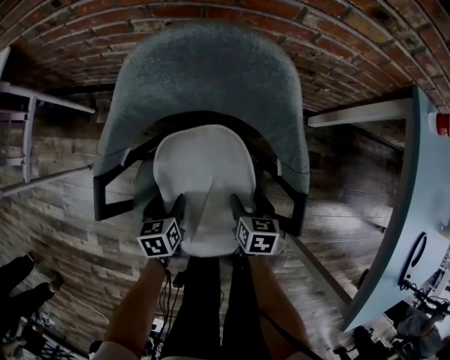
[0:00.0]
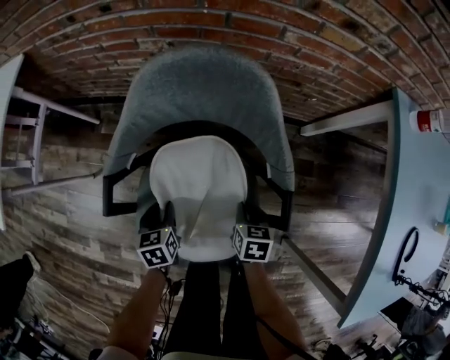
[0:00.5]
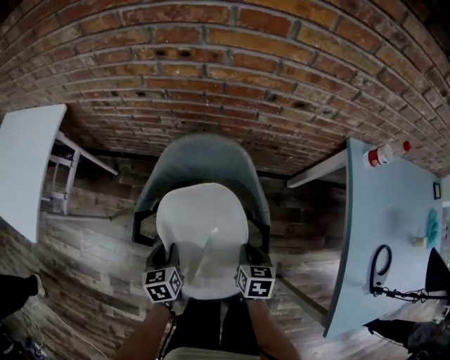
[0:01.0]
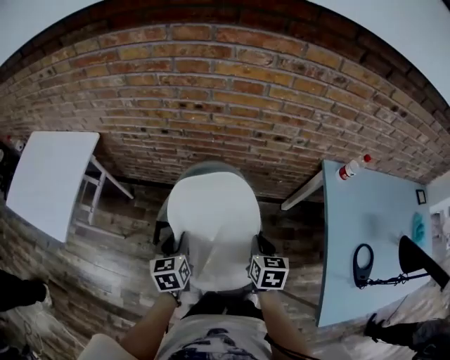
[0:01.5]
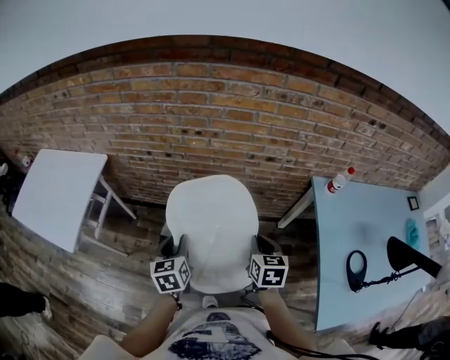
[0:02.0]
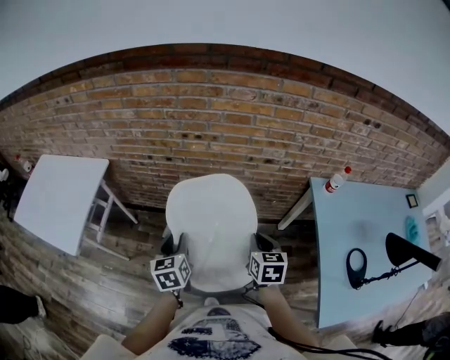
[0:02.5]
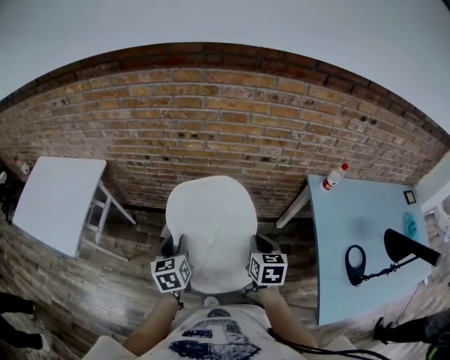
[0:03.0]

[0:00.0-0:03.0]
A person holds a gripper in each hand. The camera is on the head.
0:00.0 to 0:01.5: The two grippers go some 40 cm upward. The right gripper closes up. The left gripper rotates some 20 degrees, and closes its fingers.
0:01.5 to 0:03.0: Both grippers travel together upward, about 10 cm.

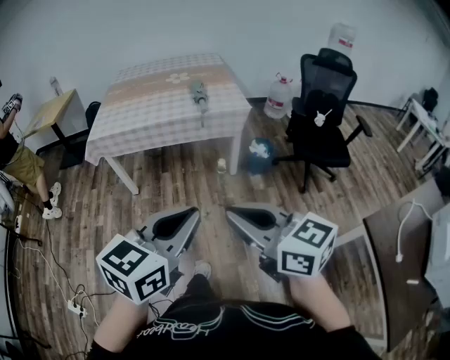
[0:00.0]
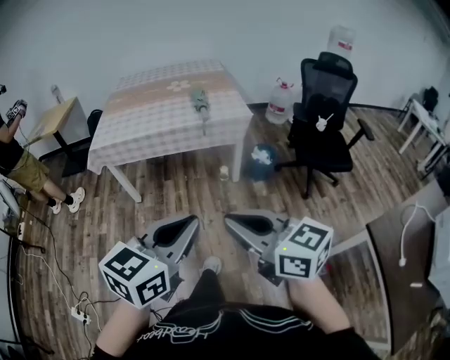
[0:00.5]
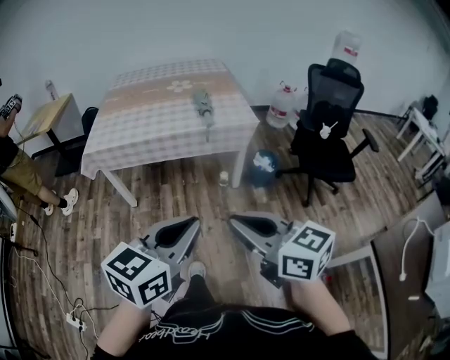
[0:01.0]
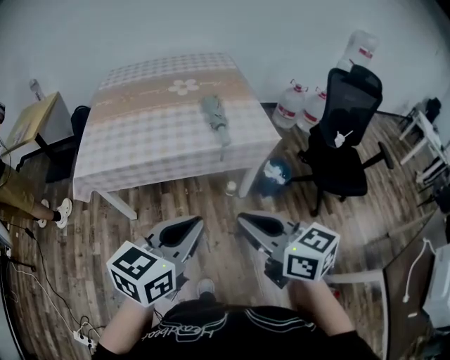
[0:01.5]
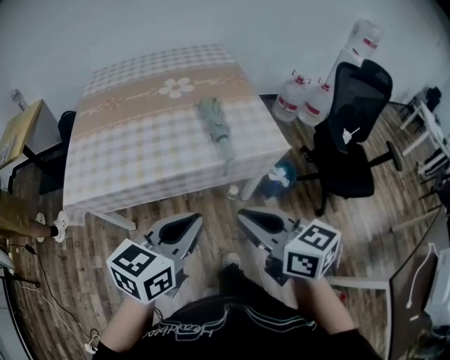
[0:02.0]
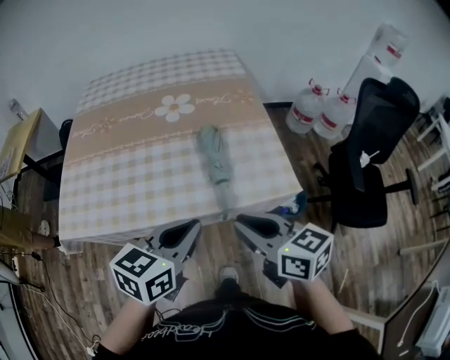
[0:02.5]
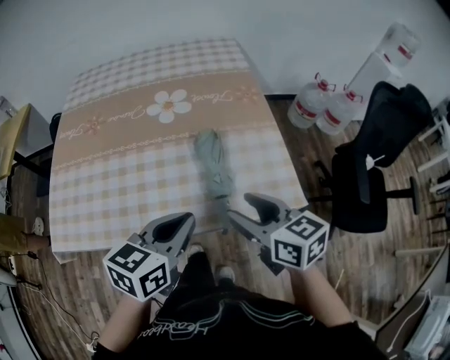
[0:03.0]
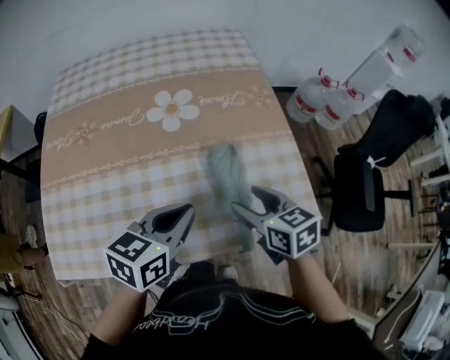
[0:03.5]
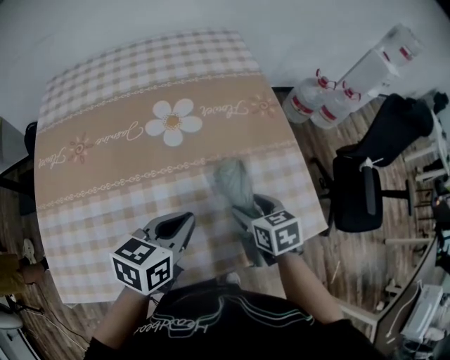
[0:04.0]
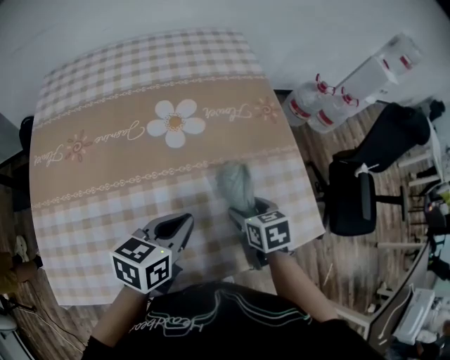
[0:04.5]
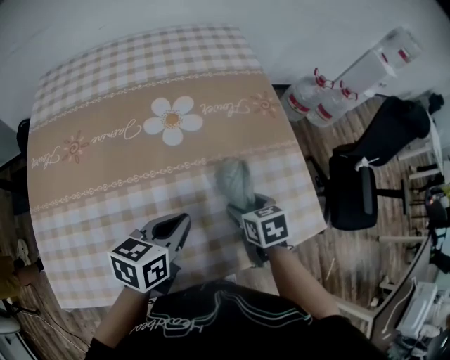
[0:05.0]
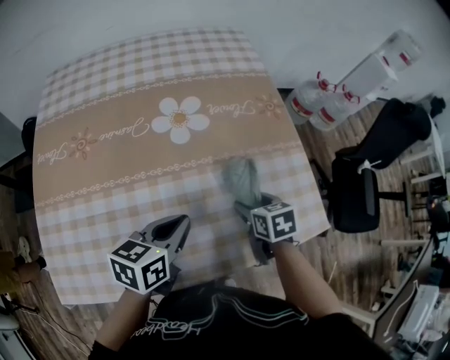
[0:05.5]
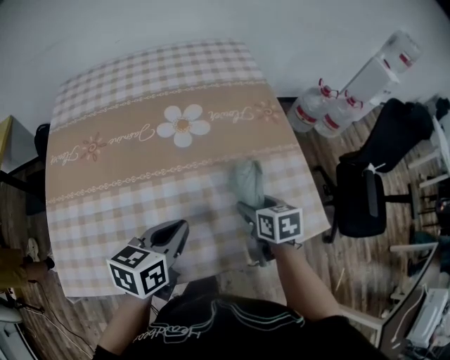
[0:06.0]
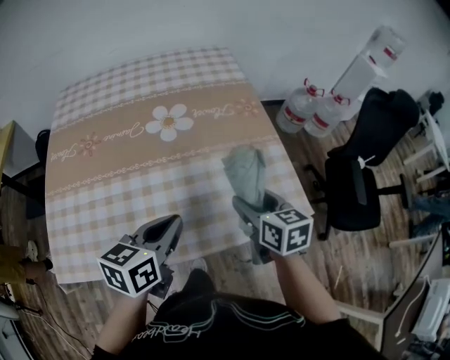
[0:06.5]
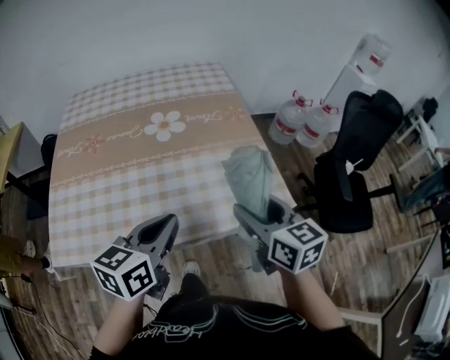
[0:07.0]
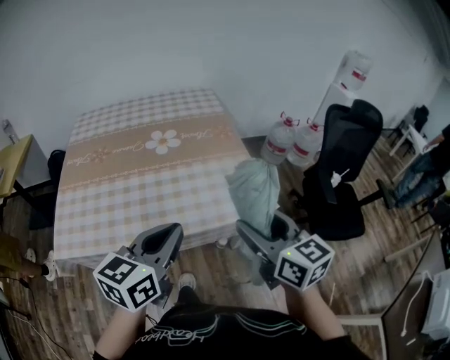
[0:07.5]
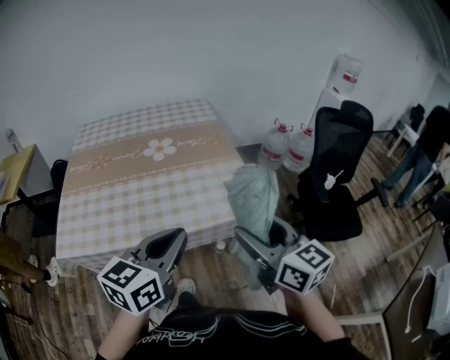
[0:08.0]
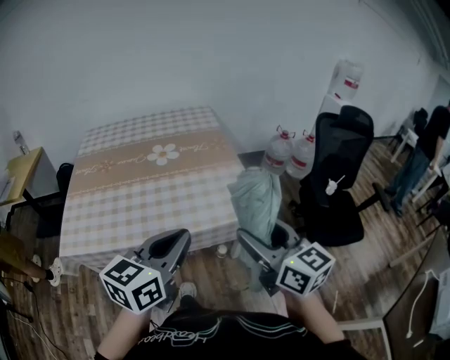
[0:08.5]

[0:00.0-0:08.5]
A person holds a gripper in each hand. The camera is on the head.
0:00.0 to 0:02.0: Both grippers are carried forward, approximately 50 cm.
0:02.0 to 0:04.0: The pair of grippers is taken forward, approximately 40 cm. The right gripper heads downward, covering about 25 cm, angles its fingers downward, by about 30 degrees, and opens its fingers.
0:04.0 to 0:06.5: The left gripper travels backward and upward by approximately 10 cm. The right gripper shifts approximately 10 cm upward.
0:06.5 to 0:08.5: The right gripper is displaced backward and upward by approximately 35 cm, and rotates some 30 degrees. Meanwhile the left gripper heads backward, upward and to the right, covering roughly 30 cm, and changes its angle by approximately 20 degrees.

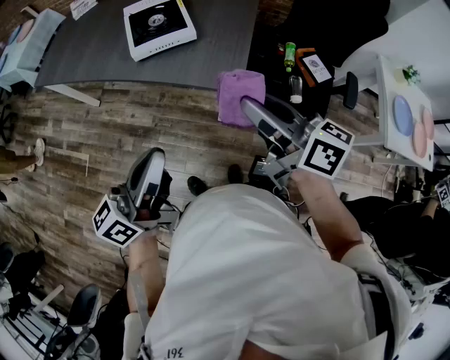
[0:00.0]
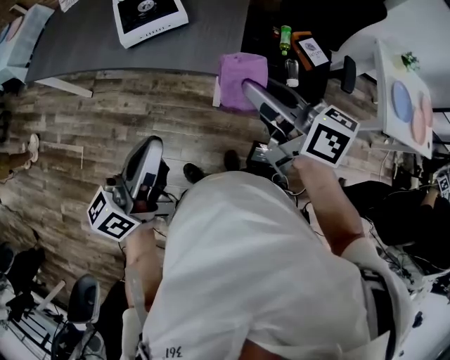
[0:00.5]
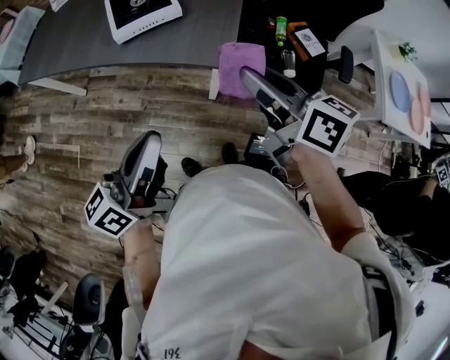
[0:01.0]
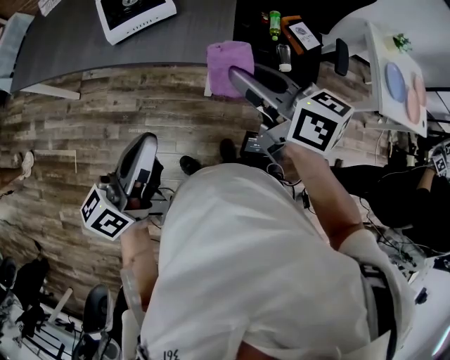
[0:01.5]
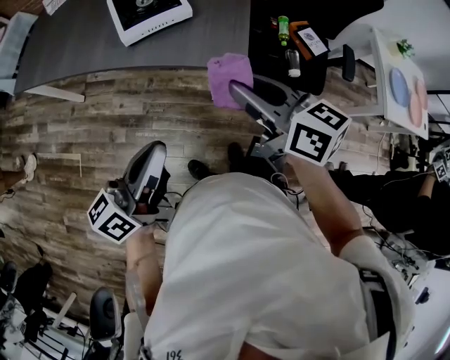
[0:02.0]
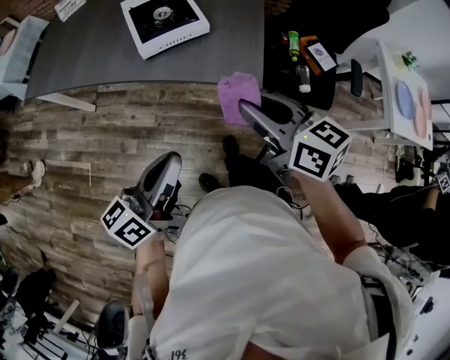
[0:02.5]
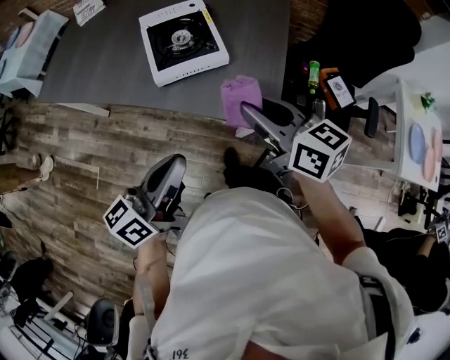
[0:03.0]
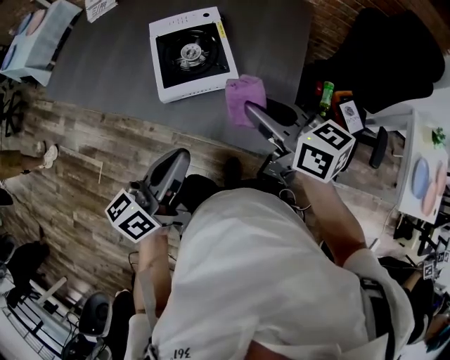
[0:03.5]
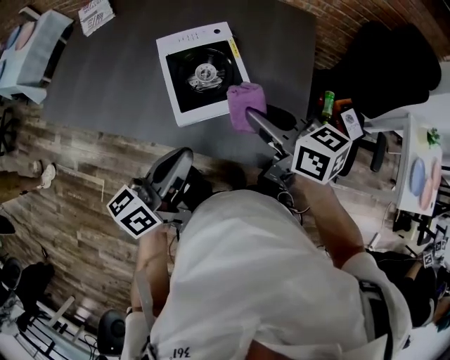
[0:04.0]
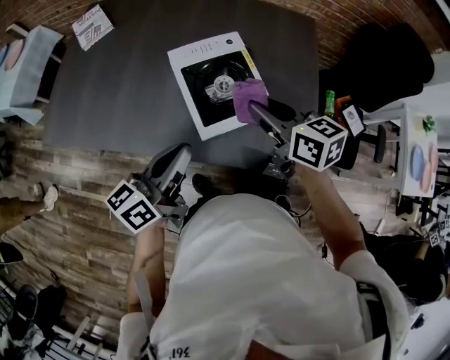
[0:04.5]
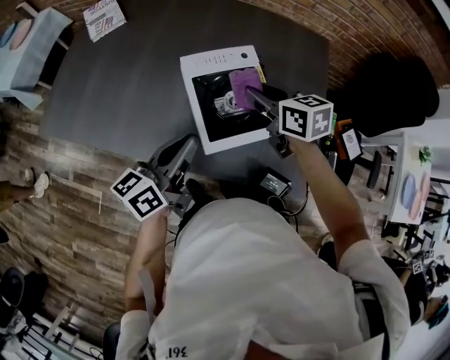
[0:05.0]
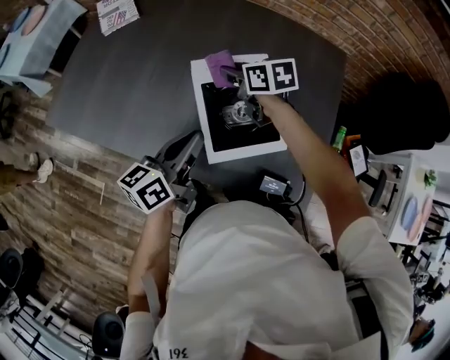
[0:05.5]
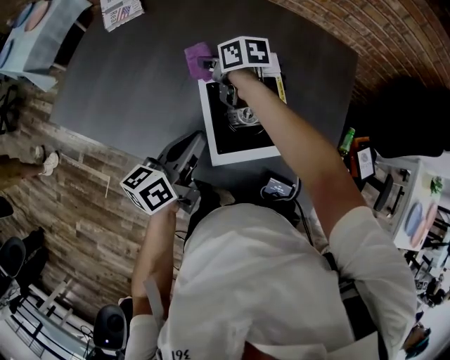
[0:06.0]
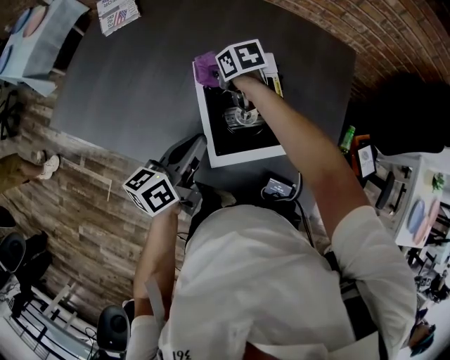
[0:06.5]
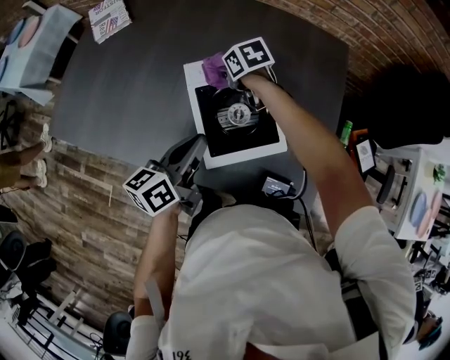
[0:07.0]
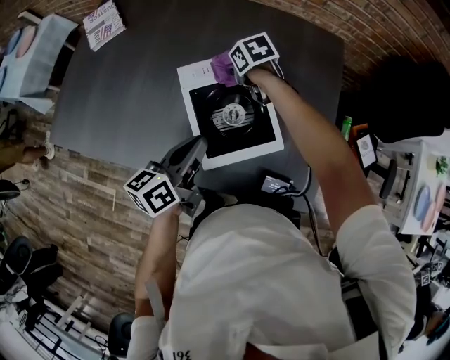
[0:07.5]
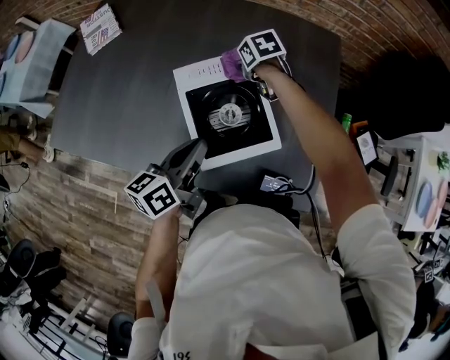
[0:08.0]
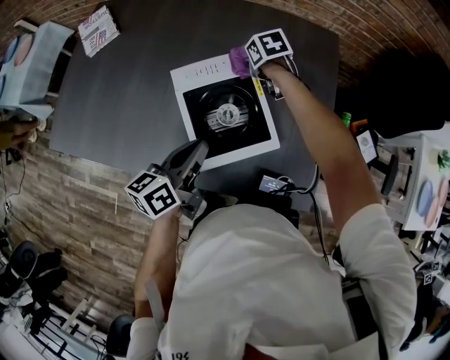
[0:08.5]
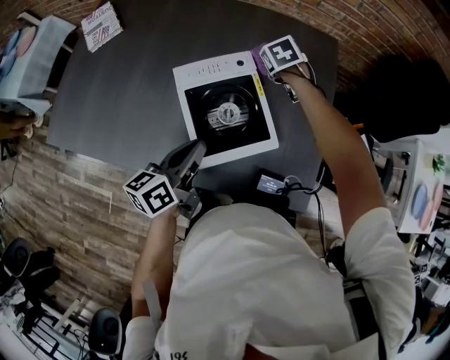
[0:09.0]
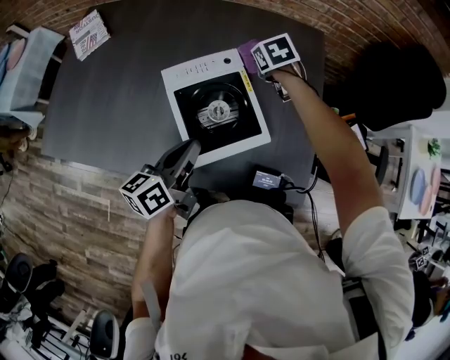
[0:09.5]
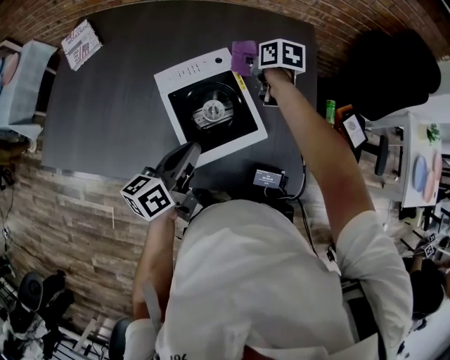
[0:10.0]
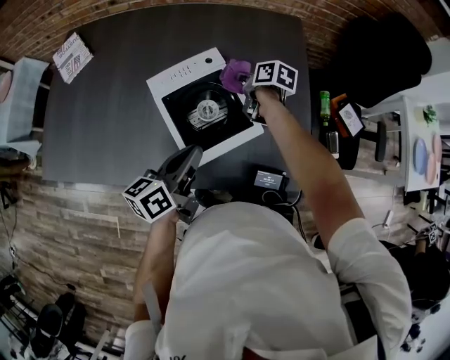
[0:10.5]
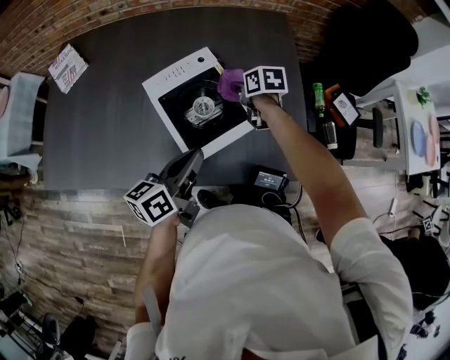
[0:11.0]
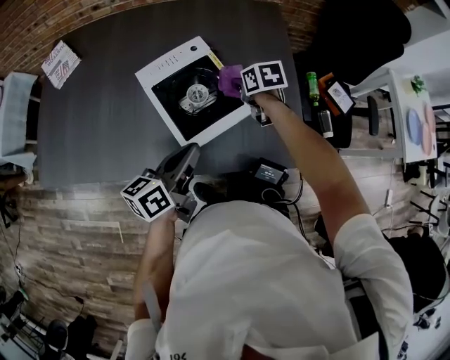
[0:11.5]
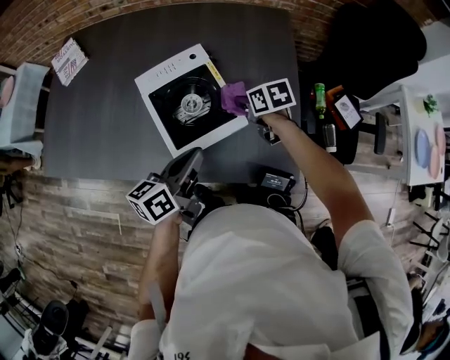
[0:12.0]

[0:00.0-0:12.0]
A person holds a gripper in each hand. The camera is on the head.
0:00.0 to 0:02.0: The left gripper shifts some 10 cm to the left and downward. The right gripper shifts roughly 5 cm to the left.
0:02.0 to 0:04.0: The grippers both shift forward by approximately 30 cm.
0:04.0 to 0:06.0: The right gripper is displaced forward, to the left and downward by some 40 cm, and changes its angle by approximately 30 degrees. Meanwhile the left gripper heads forward and downward, covering roughly 20 cm.
0:06.0 to 0:08.0: The right gripper shifts about 20 cm to the right, and rotates about 30 degrees; the left gripper heads to the right, covering approximately 5 cm.
0:08.0 to 0:10.0: The right gripper travels to the right and upward by some 10 cm, and changes its angle by some 30 degrees.
0:10.0 to 0:12.0: The right gripper goes about 15 cm backward and to the right. The left gripper heads to the right, covering roughly 5 cm.

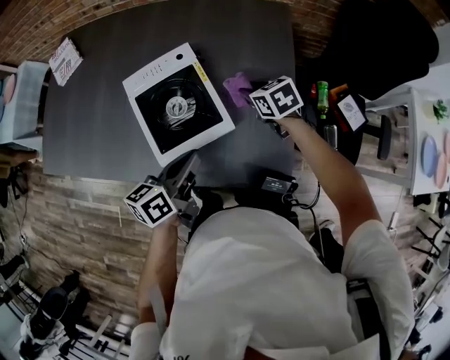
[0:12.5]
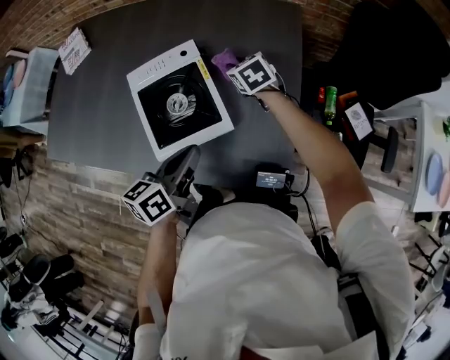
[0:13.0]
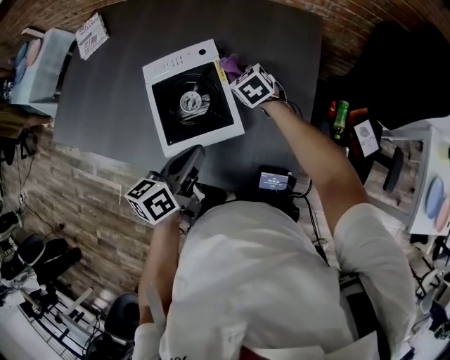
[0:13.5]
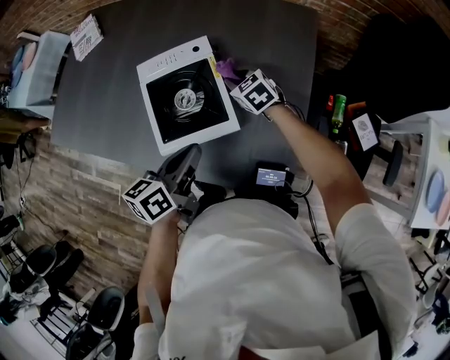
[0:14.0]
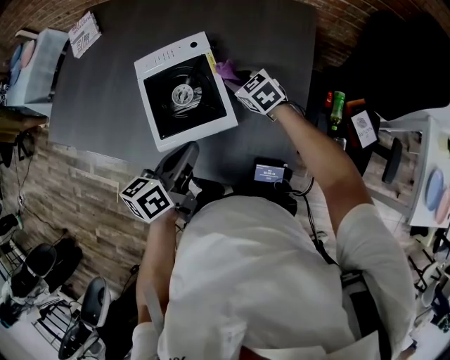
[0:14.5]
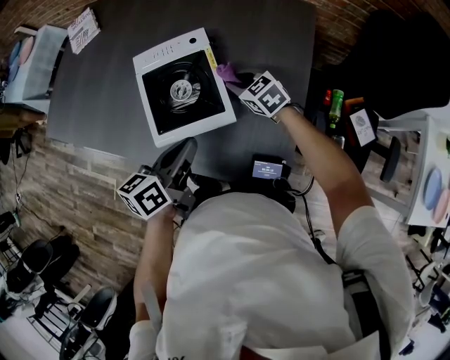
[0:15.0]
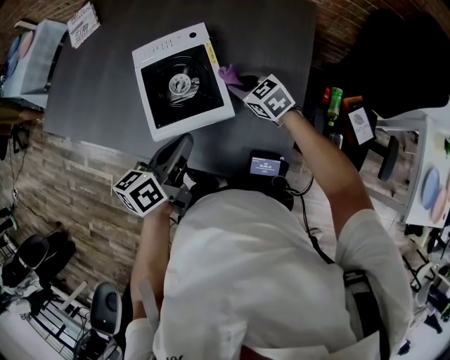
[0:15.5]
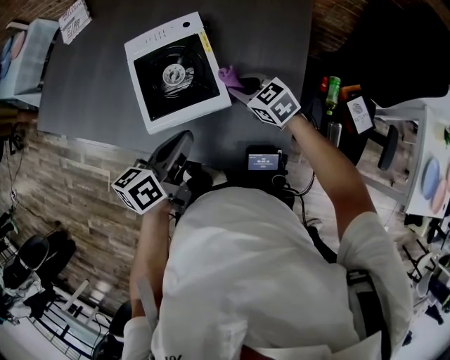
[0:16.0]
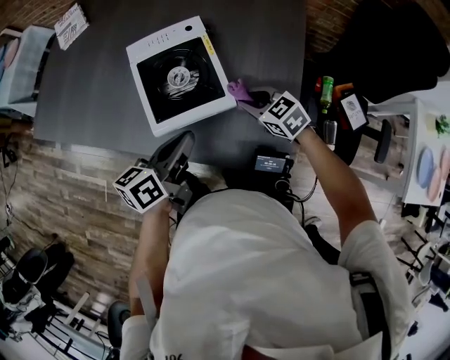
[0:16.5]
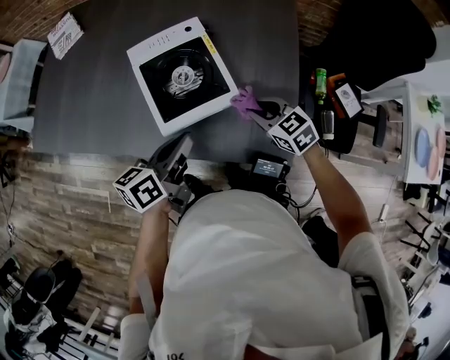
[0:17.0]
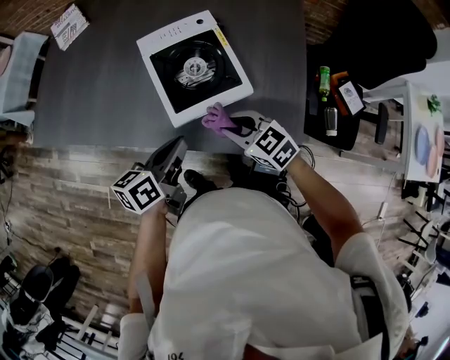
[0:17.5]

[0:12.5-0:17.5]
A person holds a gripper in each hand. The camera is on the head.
0:12.5 to 0:15.0: The right gripper travels to the left by approximately 5 cm, moves some 10 cm forward and comes back, and turns by approximately 30 degrees.
0:15.0 to 0:17.5: The right gripper is displaced backward and to the left by roughly 20 cm. The left gripper is displaced to the left by roughly 10 cm.
